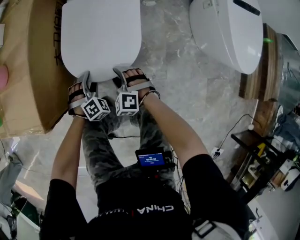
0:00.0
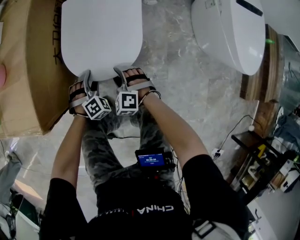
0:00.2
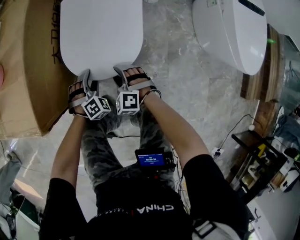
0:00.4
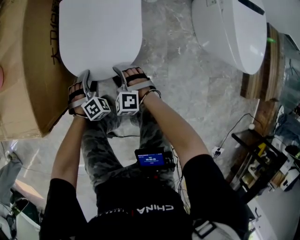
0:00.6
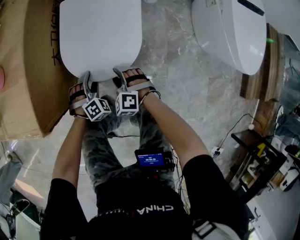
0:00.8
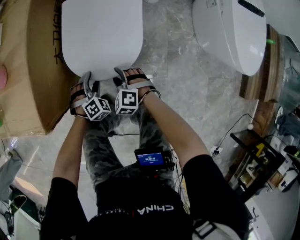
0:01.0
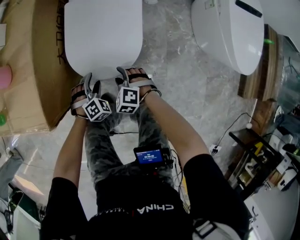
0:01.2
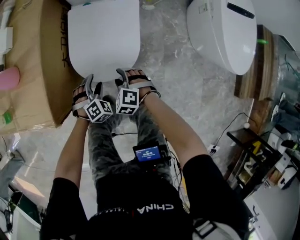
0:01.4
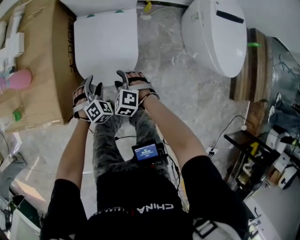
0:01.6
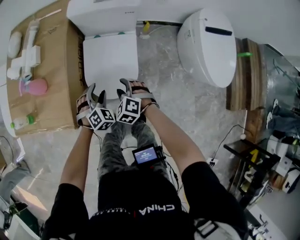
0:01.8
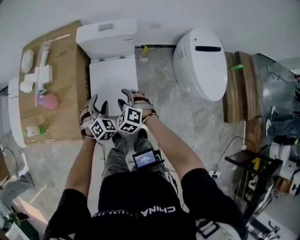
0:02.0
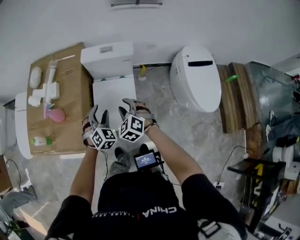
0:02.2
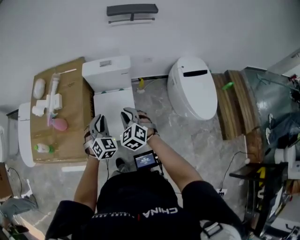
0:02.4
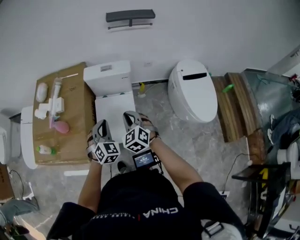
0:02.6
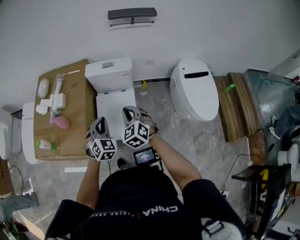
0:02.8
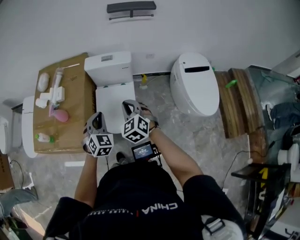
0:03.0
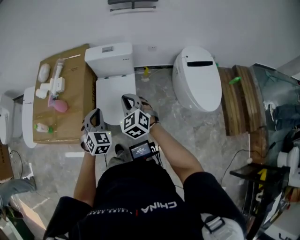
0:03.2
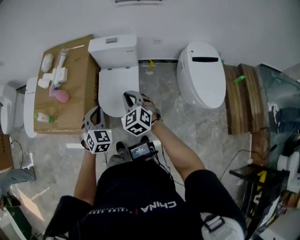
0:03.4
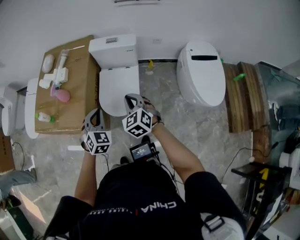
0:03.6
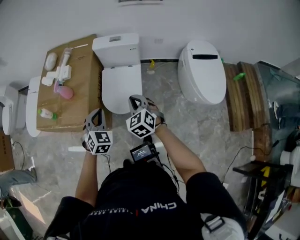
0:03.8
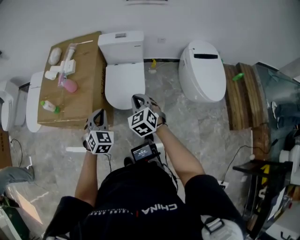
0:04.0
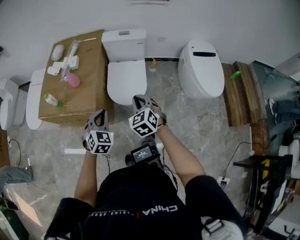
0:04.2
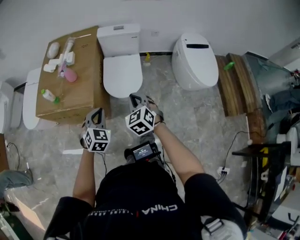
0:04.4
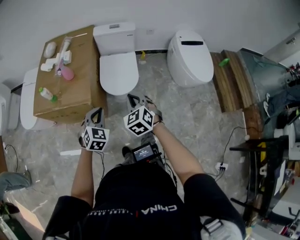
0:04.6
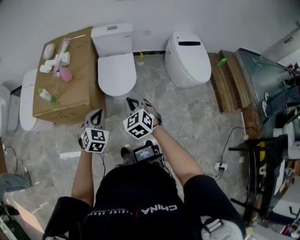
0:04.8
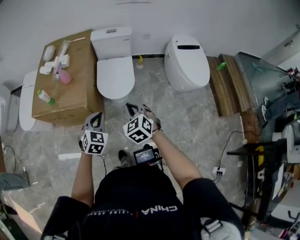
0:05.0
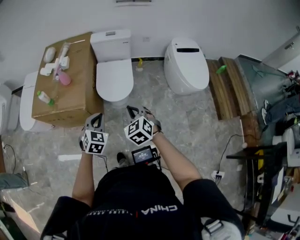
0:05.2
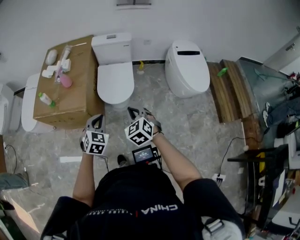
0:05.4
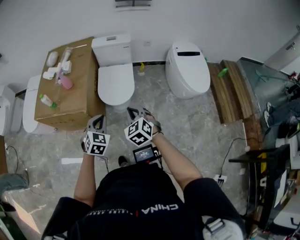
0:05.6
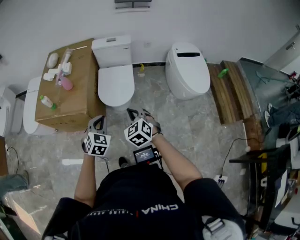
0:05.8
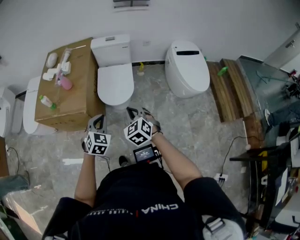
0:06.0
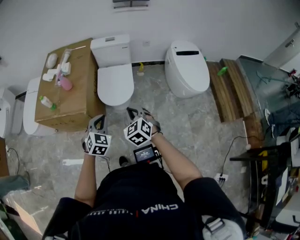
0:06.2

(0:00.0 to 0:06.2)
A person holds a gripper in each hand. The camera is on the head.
0:00.0 - 0:01.6: Both grippers move upward, about 15 cm.
0:01.6 - 0:03.2: The grippers both shift upward by approximately 40 cm. The right gripper changes its angle by about 40 degrees, and closes. The left gripper changes its angle by about 30 degrees, and closes up.
0:03.2 - 0:04.6: The grippers both shift backward and to the left by approximately 30 cm.
0:04.6 - 0:06.2: The two grippers go roughly 5 cm to the right.

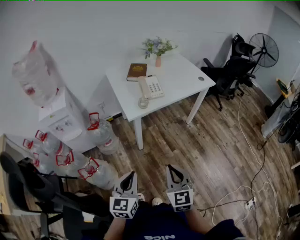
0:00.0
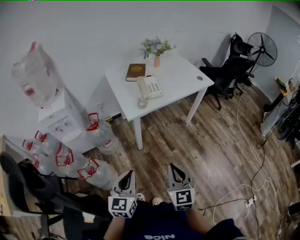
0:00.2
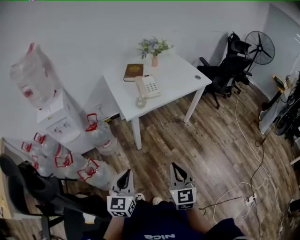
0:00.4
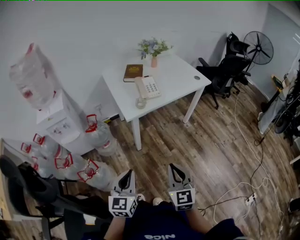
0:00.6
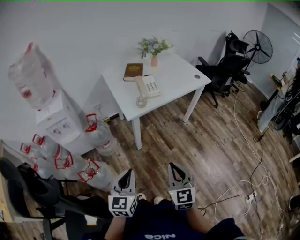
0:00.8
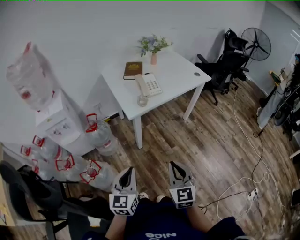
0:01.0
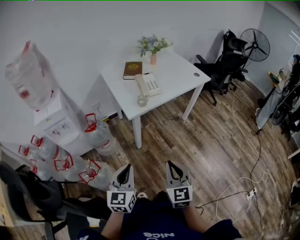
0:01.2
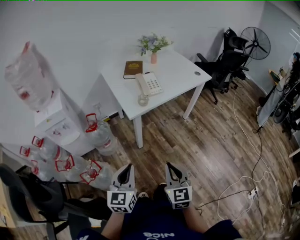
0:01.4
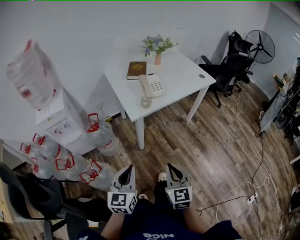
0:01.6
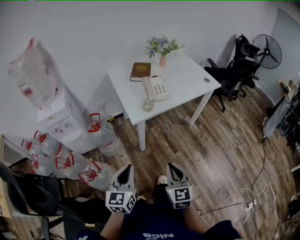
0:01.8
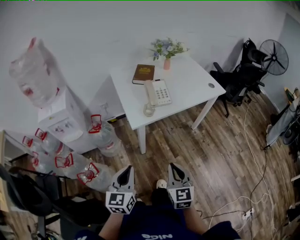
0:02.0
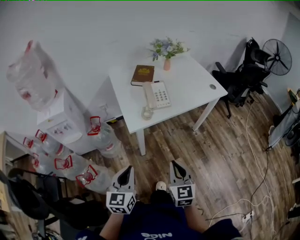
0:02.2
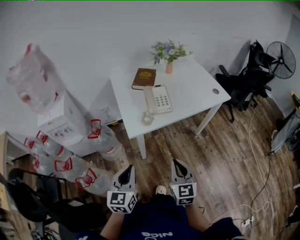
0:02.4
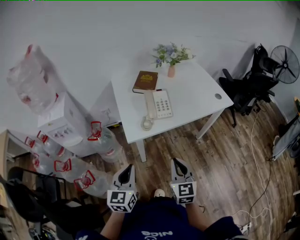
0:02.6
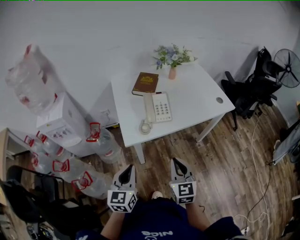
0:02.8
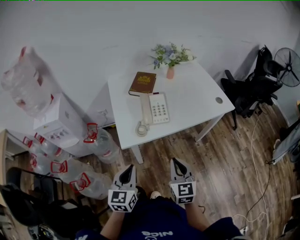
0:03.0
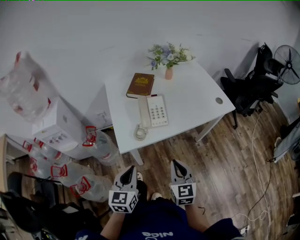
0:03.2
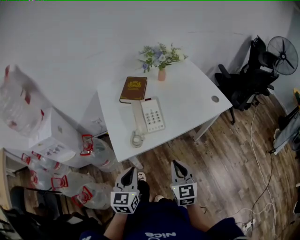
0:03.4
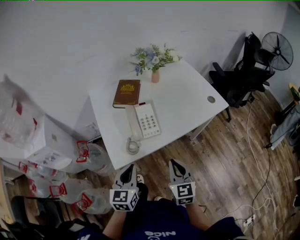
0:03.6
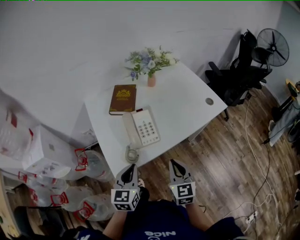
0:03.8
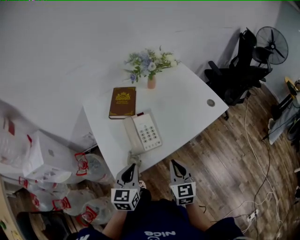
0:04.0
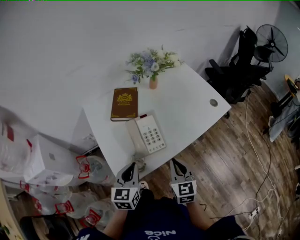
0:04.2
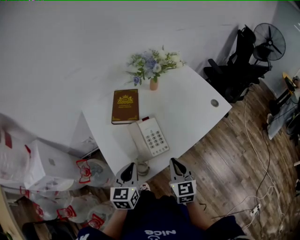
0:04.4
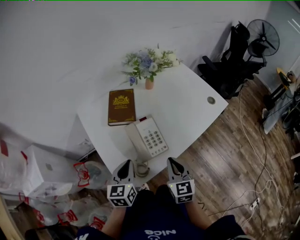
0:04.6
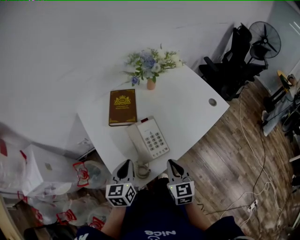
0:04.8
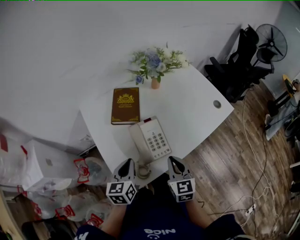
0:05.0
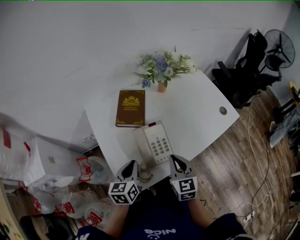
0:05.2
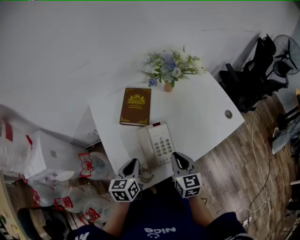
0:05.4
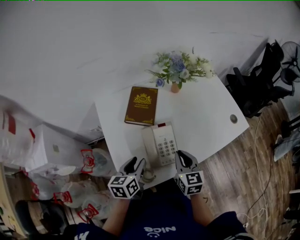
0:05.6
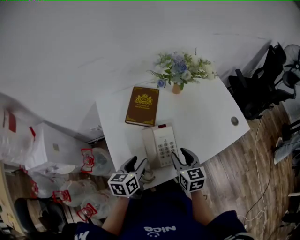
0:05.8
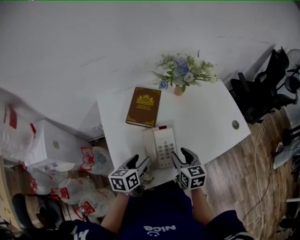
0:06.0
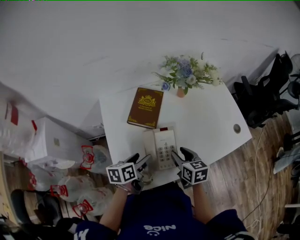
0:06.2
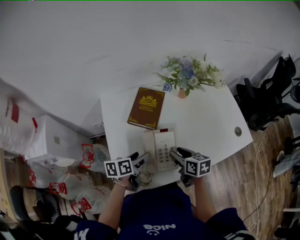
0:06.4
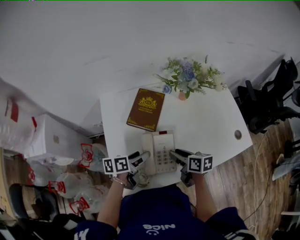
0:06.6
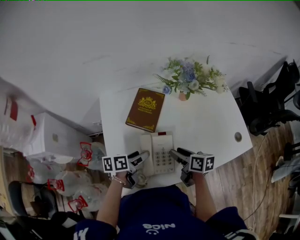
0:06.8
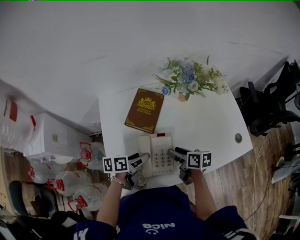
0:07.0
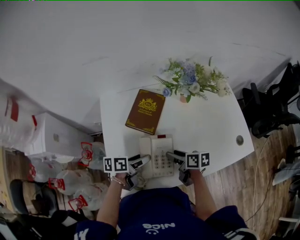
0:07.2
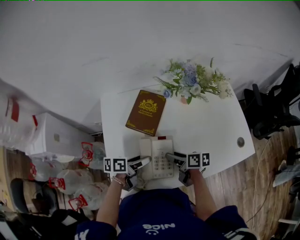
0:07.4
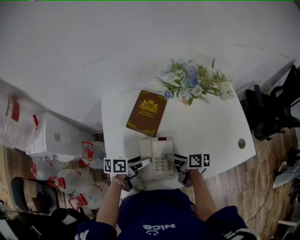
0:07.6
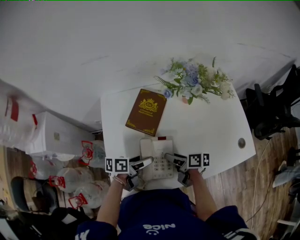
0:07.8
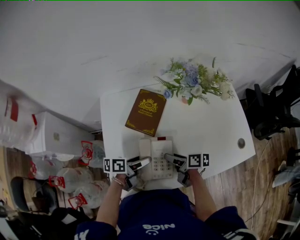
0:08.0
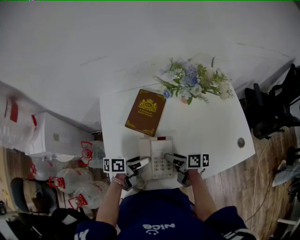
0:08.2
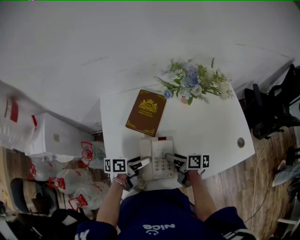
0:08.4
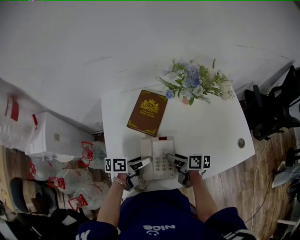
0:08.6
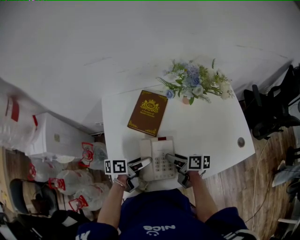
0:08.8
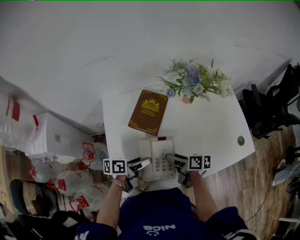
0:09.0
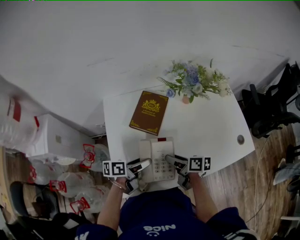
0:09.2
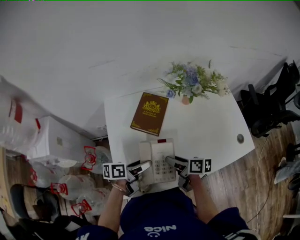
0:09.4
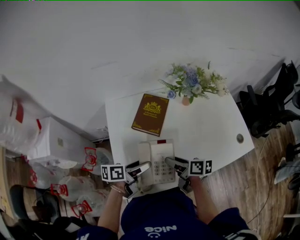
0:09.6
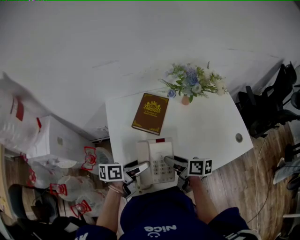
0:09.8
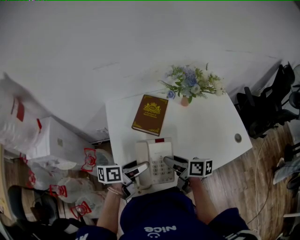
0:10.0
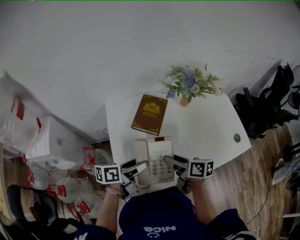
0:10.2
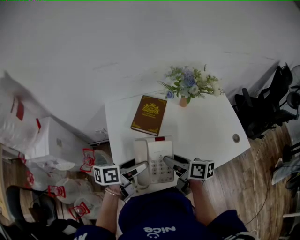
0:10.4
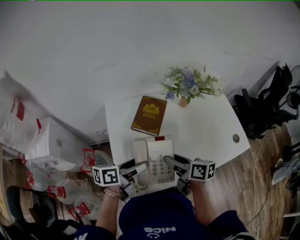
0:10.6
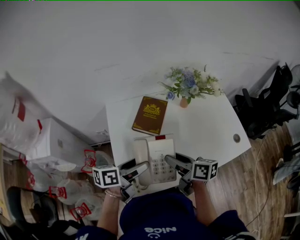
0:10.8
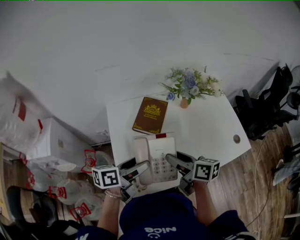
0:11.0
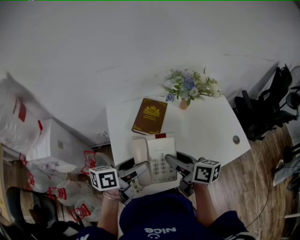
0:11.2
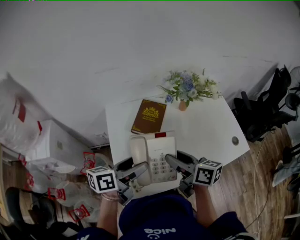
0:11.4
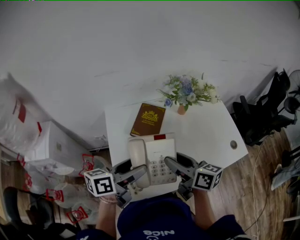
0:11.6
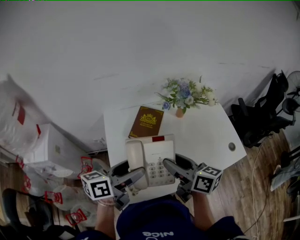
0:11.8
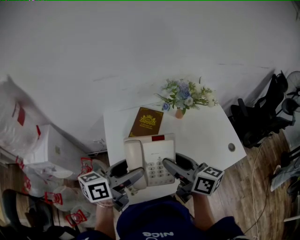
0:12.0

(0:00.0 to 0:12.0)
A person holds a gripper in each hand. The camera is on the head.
0:00.0 - 0:01.6: The left gripper shifts by roughly 5 cm. The right gripper ends up about 5 cm from where it was.
0:01.6 - 0:03.0: The two grippers go approximately 25 cm forward and to the right.
0:03.0 - 0:04.4: Both grippers move forward, some 20 cm.
0:04.4 - 0:06.0: The left gripper is displaced forward by approximately 10 cm, turns by roughly 30 degrees, and opens its fingers. The right gripper is displaced forward by approximately 15 cm, rotates about 20 degrees, and opens its fingers.
0:06.0 - 0:07.6: The left gripper moves about 5 cm, and rotates approximately 30 degrees. The right gripper moves downward and forward, approximately 10 cm, and changes its angle by about 50 degrees.
0:07.6 - 0:09.0: The grippers stay close to where they were, moving slightly.
0:09.0 - 0:10.4: The two grippers go about 10 cm upward.
0:10.4 - 0:12.0: The two grippers go approximately 15 cm upward. The right gripper rotates about 20 degrees.

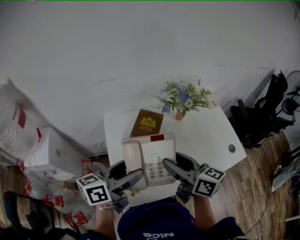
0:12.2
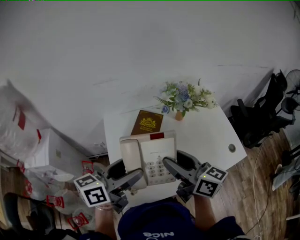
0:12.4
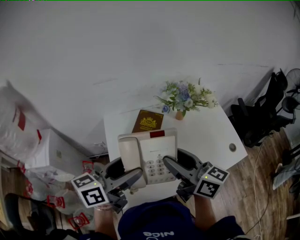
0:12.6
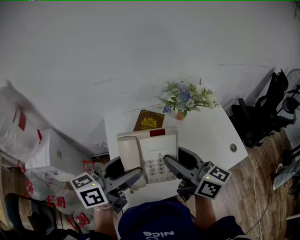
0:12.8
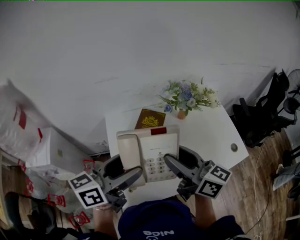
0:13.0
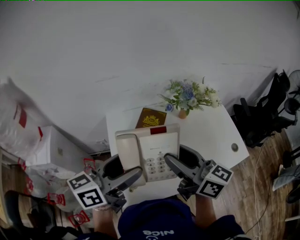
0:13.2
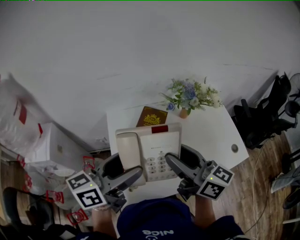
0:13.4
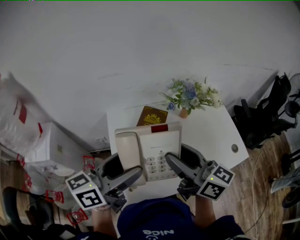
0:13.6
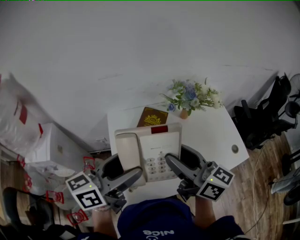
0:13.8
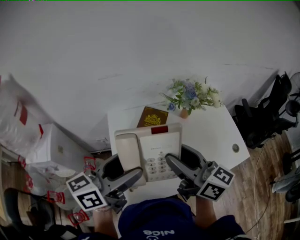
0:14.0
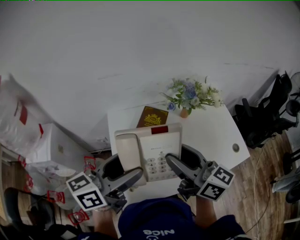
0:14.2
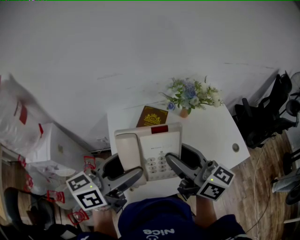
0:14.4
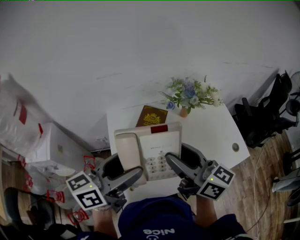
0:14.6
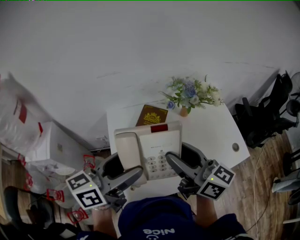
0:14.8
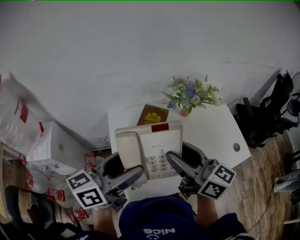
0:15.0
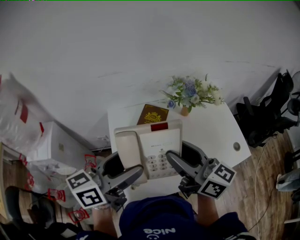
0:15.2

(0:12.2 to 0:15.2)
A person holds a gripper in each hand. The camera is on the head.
0:12.2 - 0:13.8: Both grippers travel together upward, some 5 cm.
0:13.8 - 0:15.2: Neither gripper changes place.

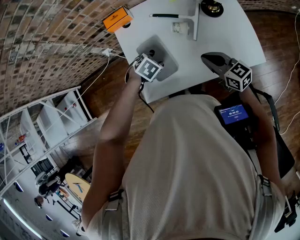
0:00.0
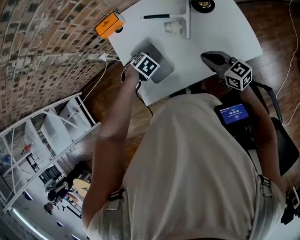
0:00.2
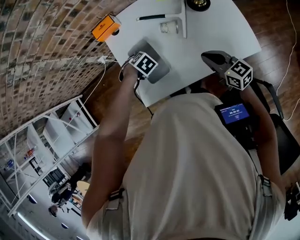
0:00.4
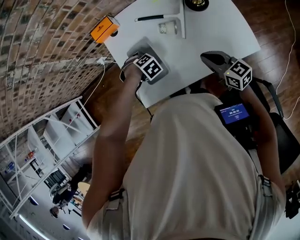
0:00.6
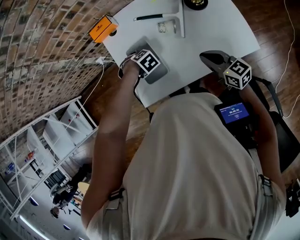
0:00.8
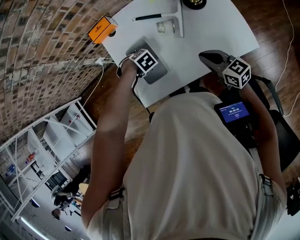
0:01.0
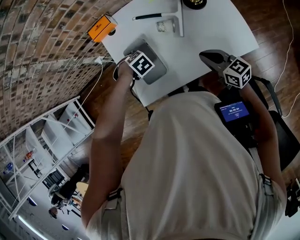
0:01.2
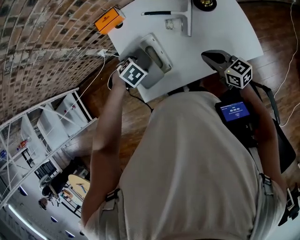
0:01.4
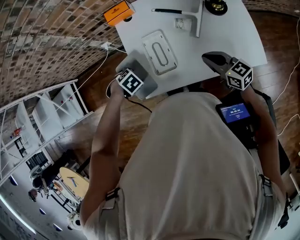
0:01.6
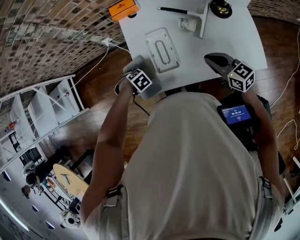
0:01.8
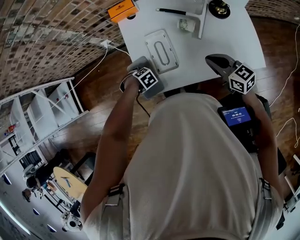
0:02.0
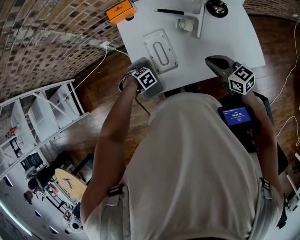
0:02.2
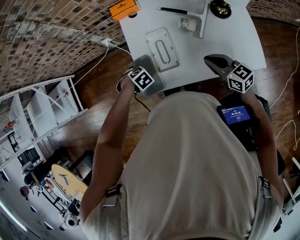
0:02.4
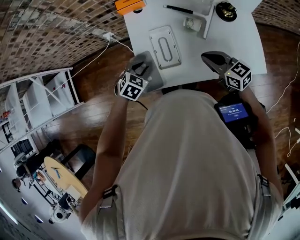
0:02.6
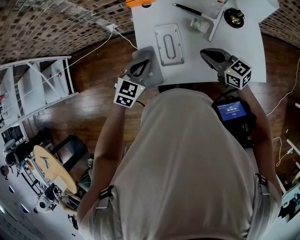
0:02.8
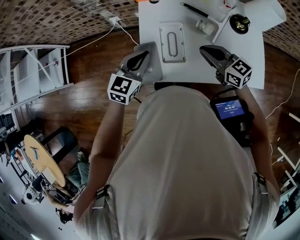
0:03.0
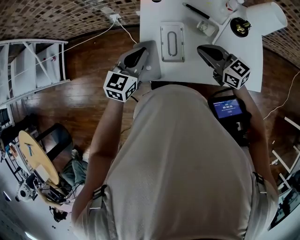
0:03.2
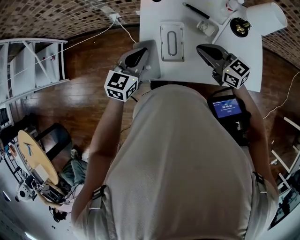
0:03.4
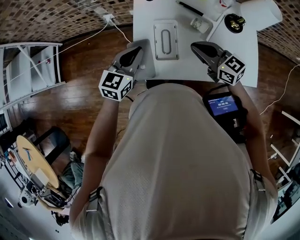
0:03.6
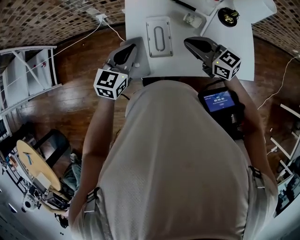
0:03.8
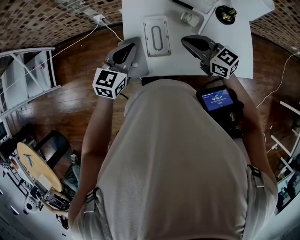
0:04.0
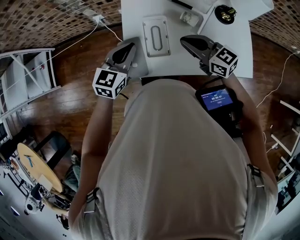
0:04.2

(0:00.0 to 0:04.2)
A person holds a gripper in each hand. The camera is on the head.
0:01.4 - 0:02.8: The right gripper ends up about 10 cm from where it was; the left gripper is displaced upward by some 5 cm, angles its fingers upward, by roughly 50 degrees, and closes up.
0:02.8 - 0:04.2: The right gripper ends up some 5 cm from where it was.
